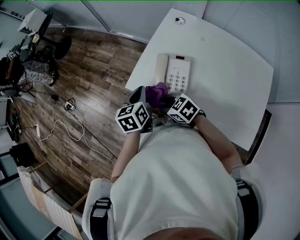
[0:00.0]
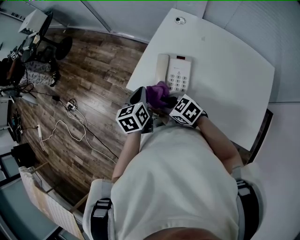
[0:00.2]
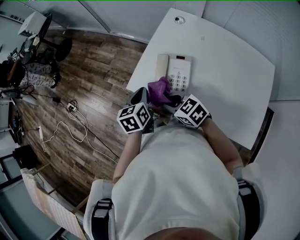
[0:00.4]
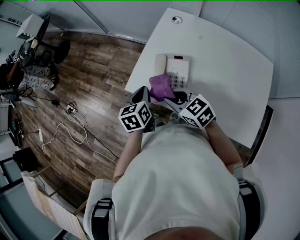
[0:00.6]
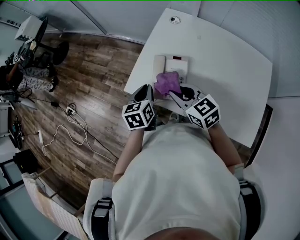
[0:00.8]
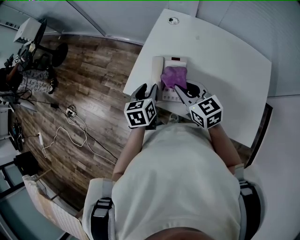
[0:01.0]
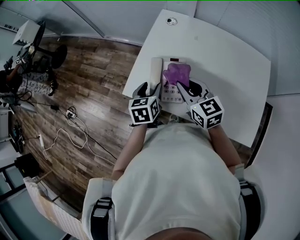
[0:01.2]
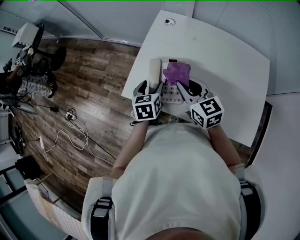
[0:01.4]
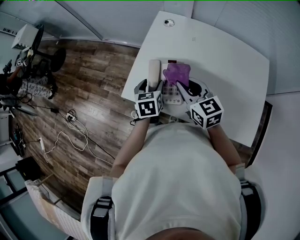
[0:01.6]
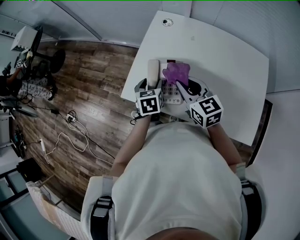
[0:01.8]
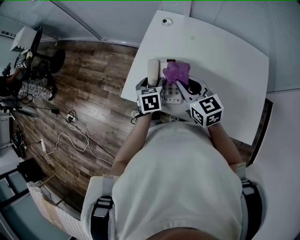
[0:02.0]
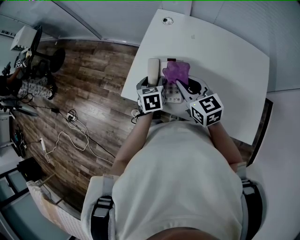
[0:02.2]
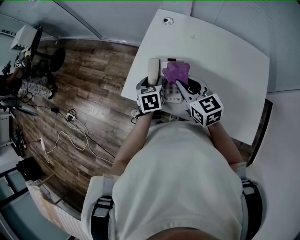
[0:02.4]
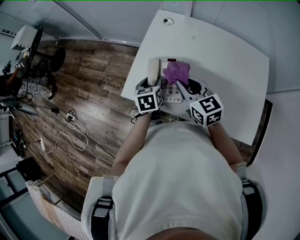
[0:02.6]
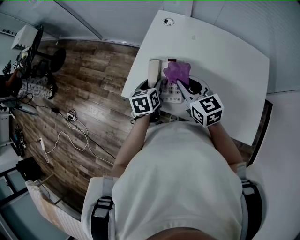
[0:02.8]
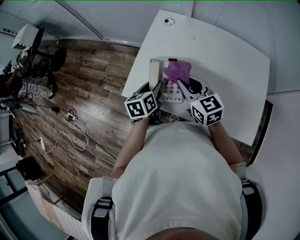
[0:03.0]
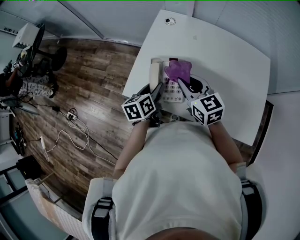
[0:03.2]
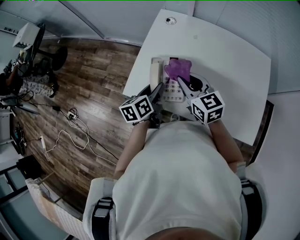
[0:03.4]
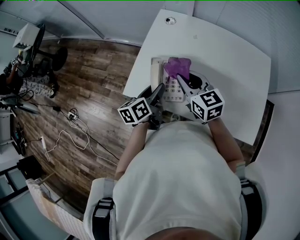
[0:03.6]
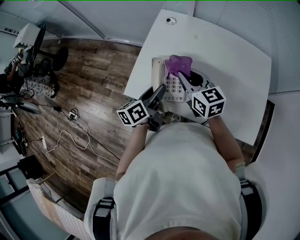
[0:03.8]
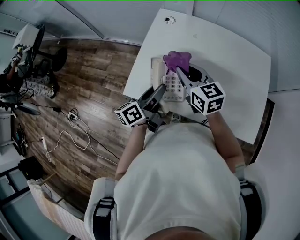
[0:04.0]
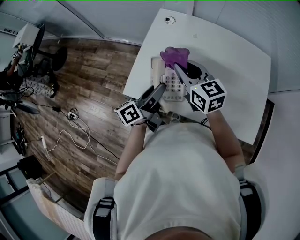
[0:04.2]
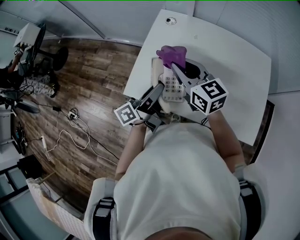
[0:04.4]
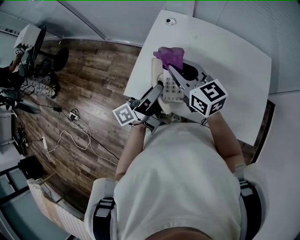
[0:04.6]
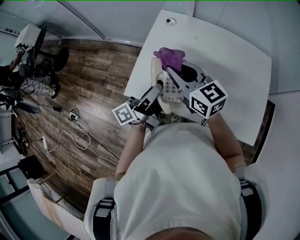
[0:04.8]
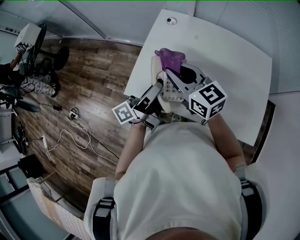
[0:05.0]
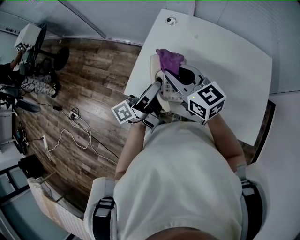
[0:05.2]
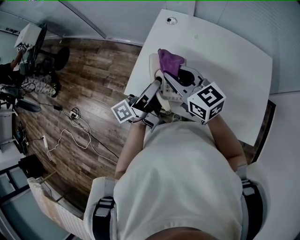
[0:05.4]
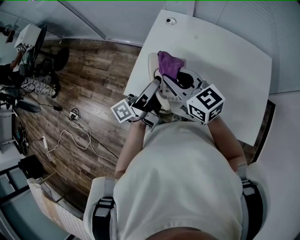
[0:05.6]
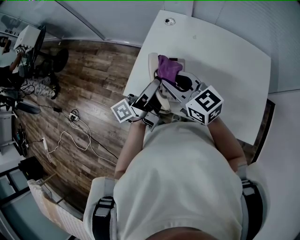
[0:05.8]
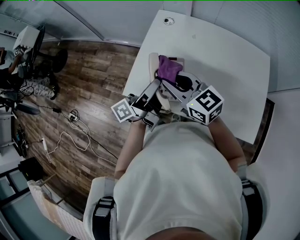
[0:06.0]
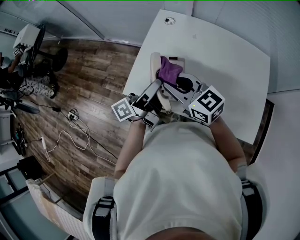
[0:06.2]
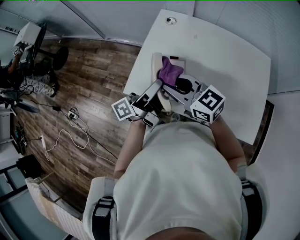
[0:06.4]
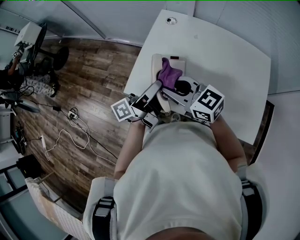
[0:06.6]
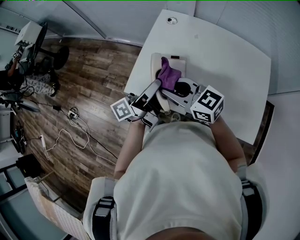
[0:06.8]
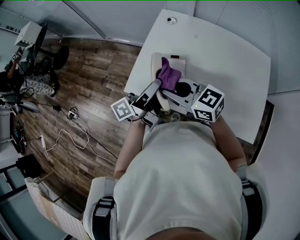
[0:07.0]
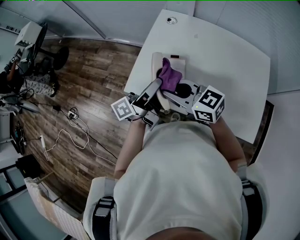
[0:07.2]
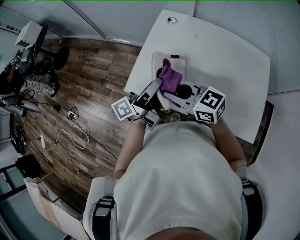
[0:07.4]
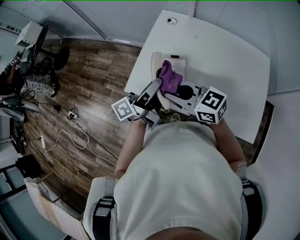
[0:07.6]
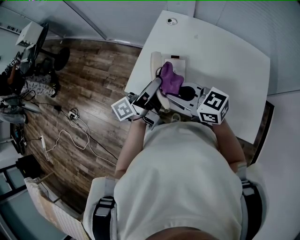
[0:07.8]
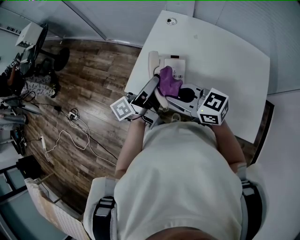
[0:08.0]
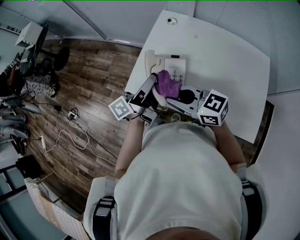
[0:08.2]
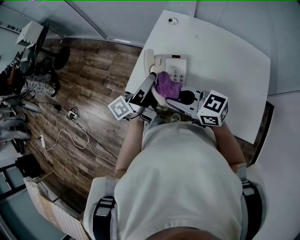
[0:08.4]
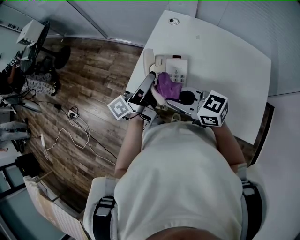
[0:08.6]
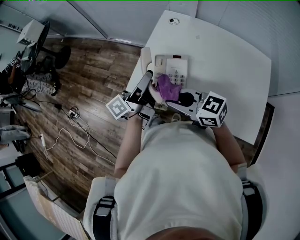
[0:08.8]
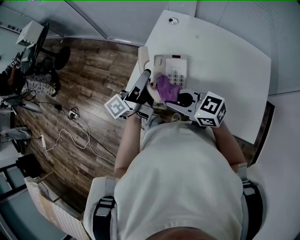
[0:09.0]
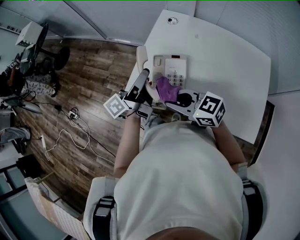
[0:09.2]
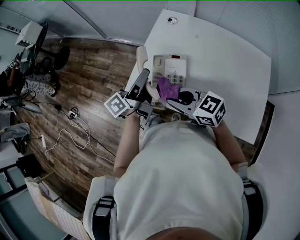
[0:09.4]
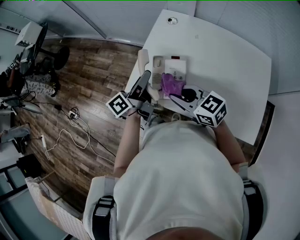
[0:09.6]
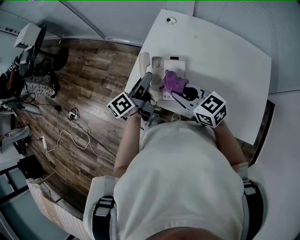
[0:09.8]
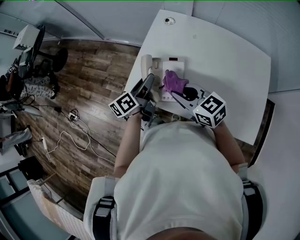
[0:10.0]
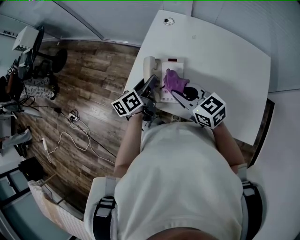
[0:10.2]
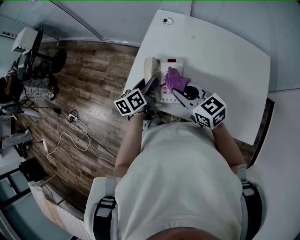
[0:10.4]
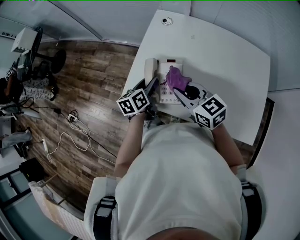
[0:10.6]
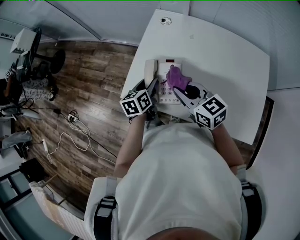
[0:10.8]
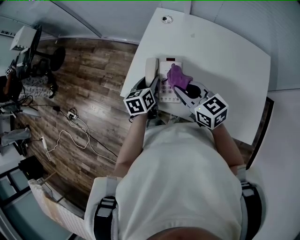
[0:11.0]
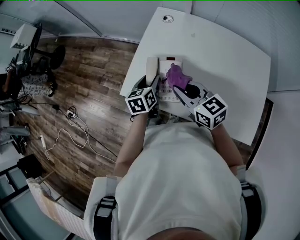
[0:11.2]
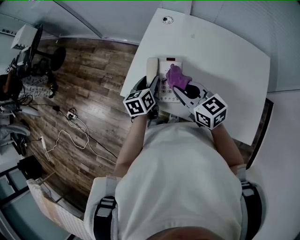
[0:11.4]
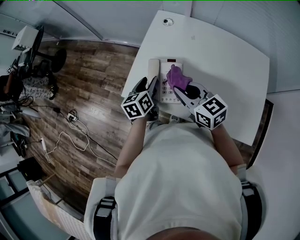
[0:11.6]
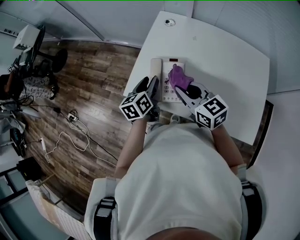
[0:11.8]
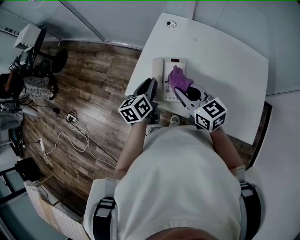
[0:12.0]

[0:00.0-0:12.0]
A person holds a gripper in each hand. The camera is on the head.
0:00.0 to 0:01.6: The right gripper changes place by approximately 20 cm, and swivels some 50 degrees. The left gripper shifts by roughly 10 cm, and opens its fingers.
0:01.6 to 0:03.0: The grippers make only small movements.
0:03.0 to 0:04.4: The left gripper moves upward, about 10 cm, and angles its fingers upward, by approximately 40 degrees; the right gripper moves upward, roughly 5 cm.
0:04.4 to 0:06.0: The right gripper travels backward by some 5 cm.
0:06.0 to 0:07.6: The right gripper shifts by approximately 5 cm.
0:07.6 to 0:09.0: The left gripper shifts by some 5 cm.
0:09.0 to 0:10.4: The left gripper heads downward, covering approximately 10 cm, and tilts its fingers roughly 40 degrees downward. Meanwhile the right gripper is displaced to the right by roughly 5 cm, and rotates roughly 20 degrees.
0:10.4 to 0:12.0: The left gripper closes its fingers.

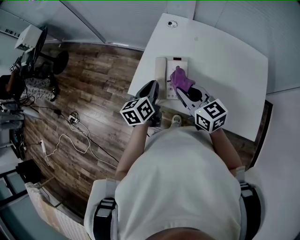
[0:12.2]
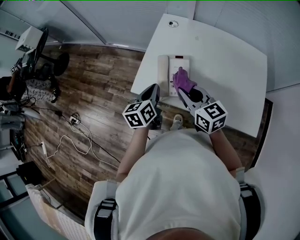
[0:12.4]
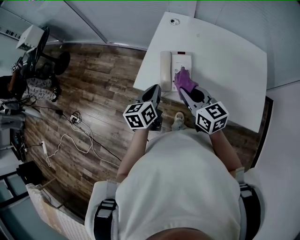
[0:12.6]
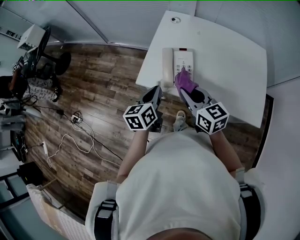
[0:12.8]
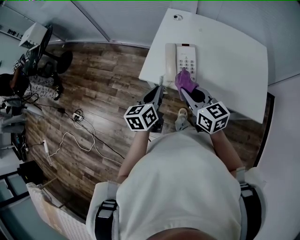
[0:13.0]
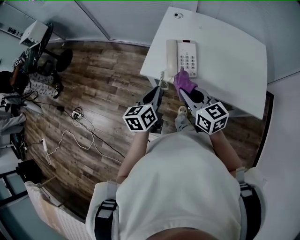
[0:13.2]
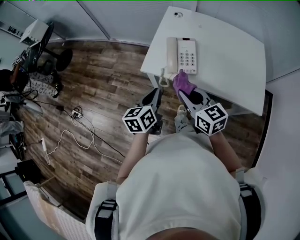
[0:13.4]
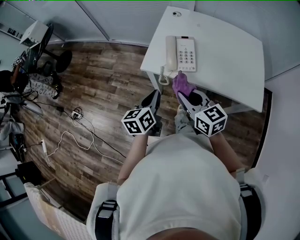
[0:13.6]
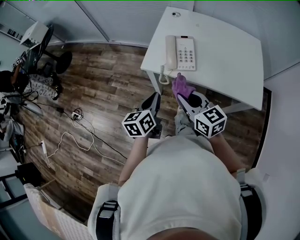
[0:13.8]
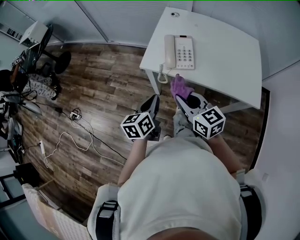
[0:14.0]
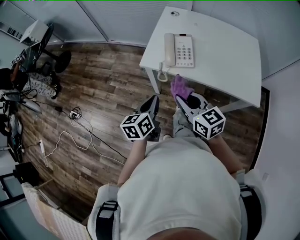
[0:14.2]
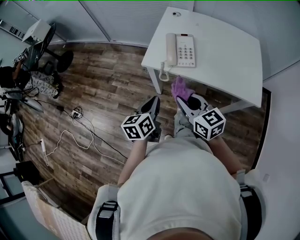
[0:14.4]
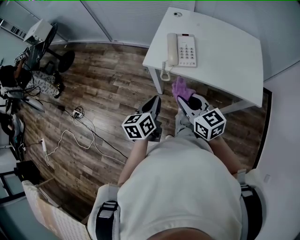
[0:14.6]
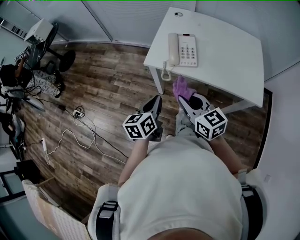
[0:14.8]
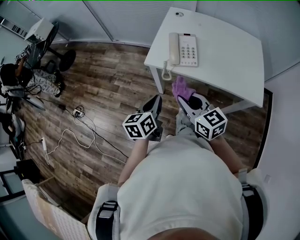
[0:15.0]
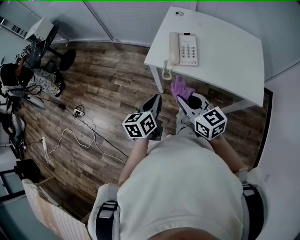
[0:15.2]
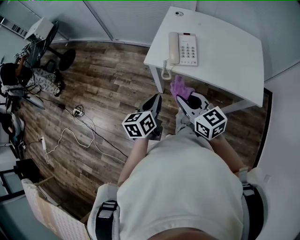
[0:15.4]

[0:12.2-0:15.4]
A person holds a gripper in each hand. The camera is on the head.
0:12.2 to 0:13.8: The two grippers go approximately 20 cm backward and to the left.
0:13.8 to 0:15.4: The right gripper moves about 5 cm.

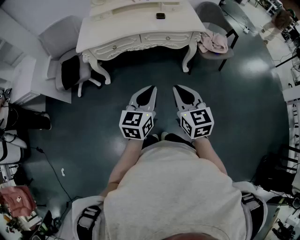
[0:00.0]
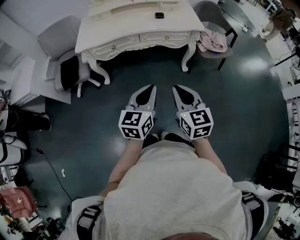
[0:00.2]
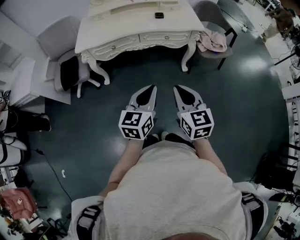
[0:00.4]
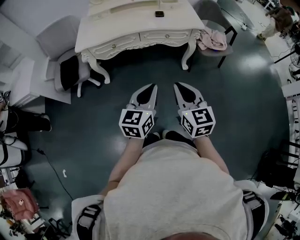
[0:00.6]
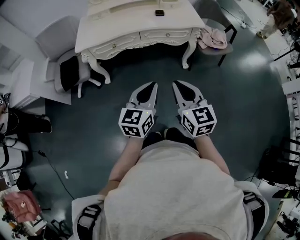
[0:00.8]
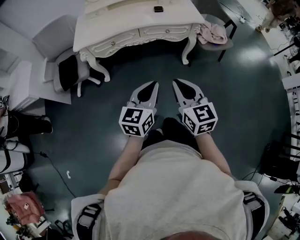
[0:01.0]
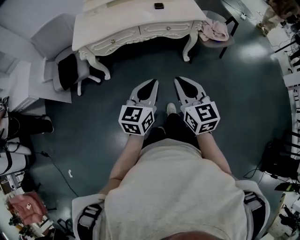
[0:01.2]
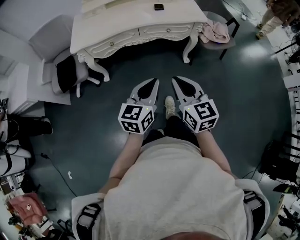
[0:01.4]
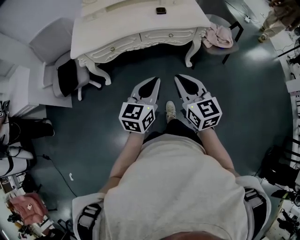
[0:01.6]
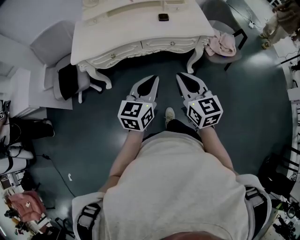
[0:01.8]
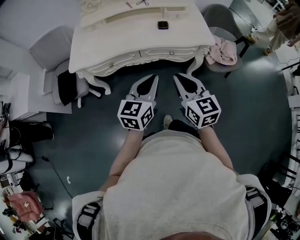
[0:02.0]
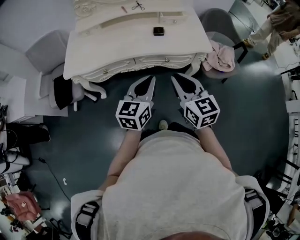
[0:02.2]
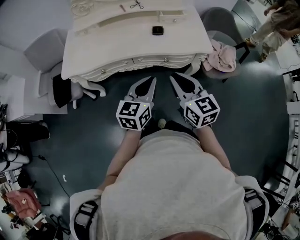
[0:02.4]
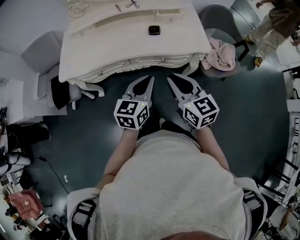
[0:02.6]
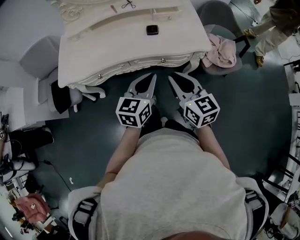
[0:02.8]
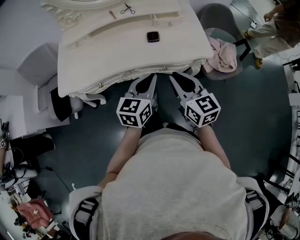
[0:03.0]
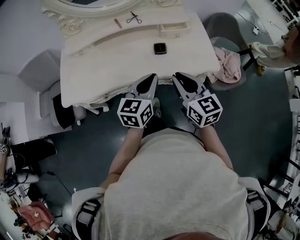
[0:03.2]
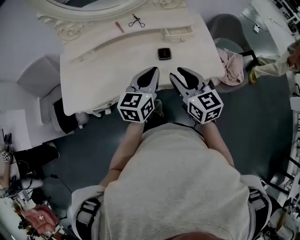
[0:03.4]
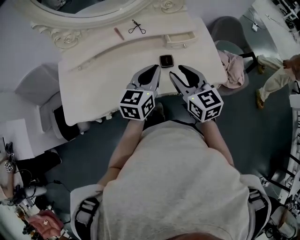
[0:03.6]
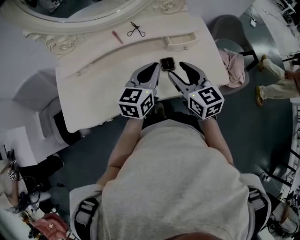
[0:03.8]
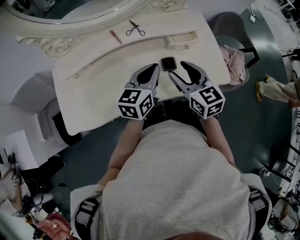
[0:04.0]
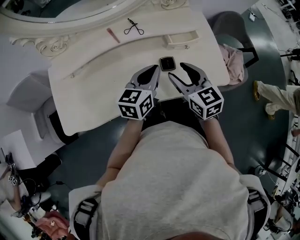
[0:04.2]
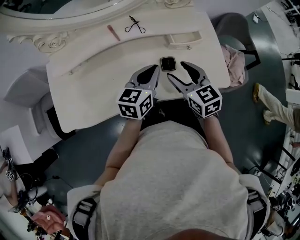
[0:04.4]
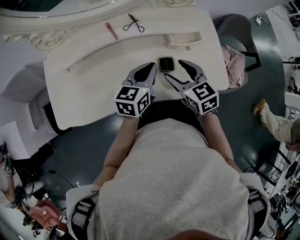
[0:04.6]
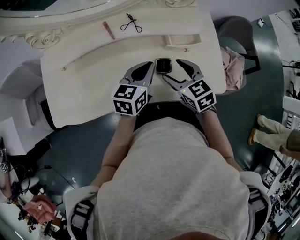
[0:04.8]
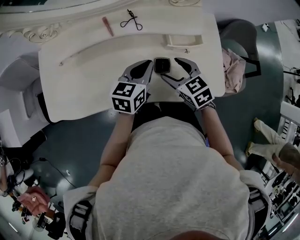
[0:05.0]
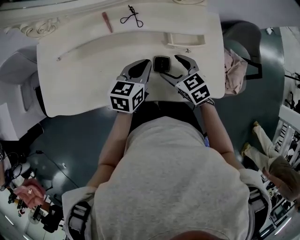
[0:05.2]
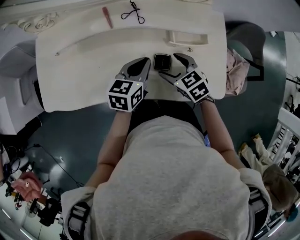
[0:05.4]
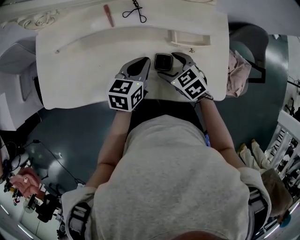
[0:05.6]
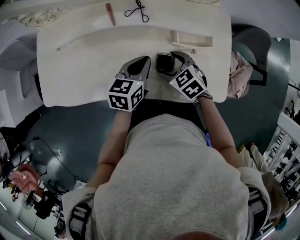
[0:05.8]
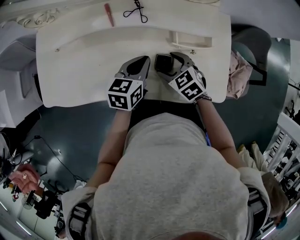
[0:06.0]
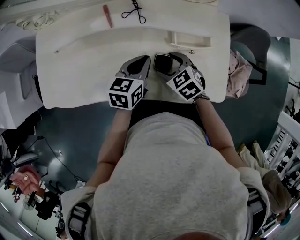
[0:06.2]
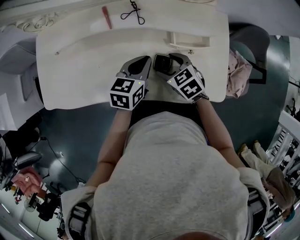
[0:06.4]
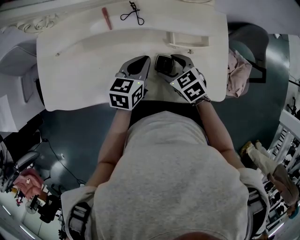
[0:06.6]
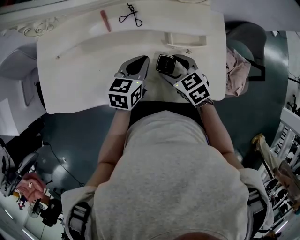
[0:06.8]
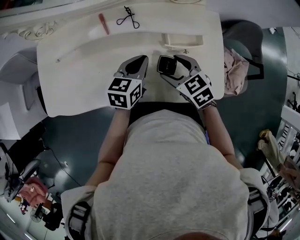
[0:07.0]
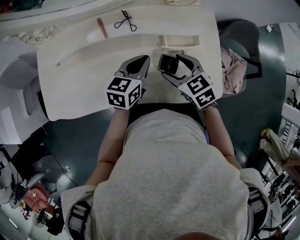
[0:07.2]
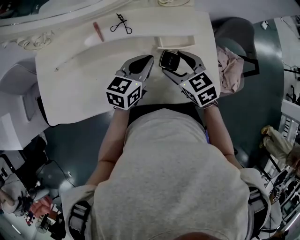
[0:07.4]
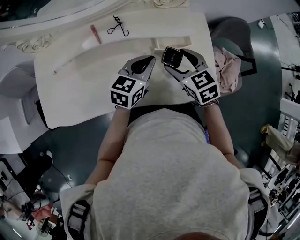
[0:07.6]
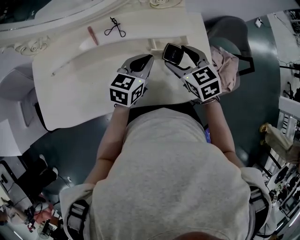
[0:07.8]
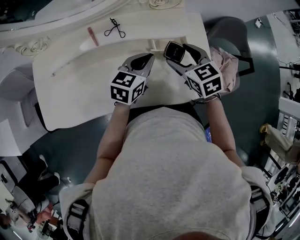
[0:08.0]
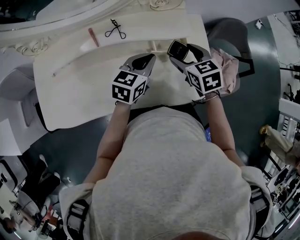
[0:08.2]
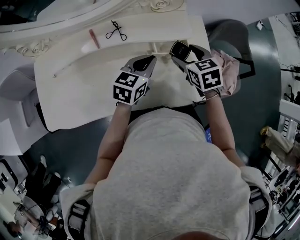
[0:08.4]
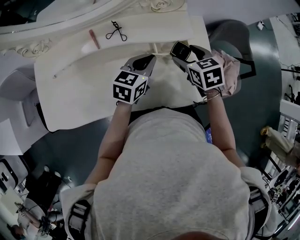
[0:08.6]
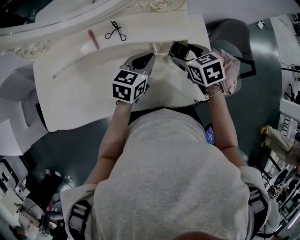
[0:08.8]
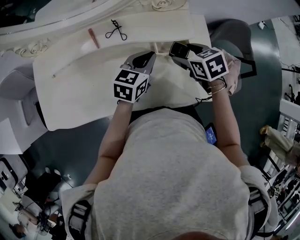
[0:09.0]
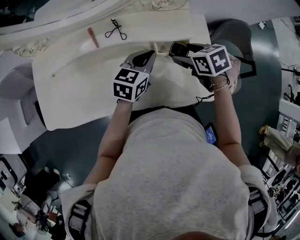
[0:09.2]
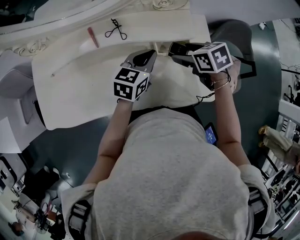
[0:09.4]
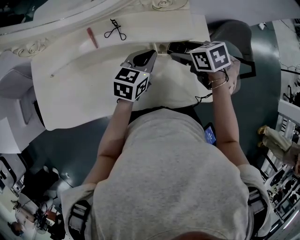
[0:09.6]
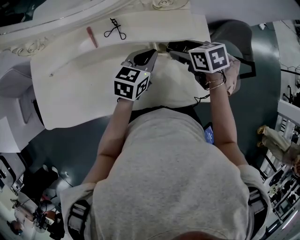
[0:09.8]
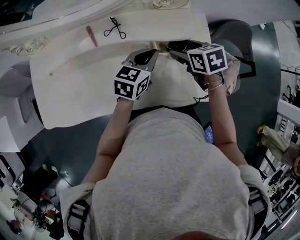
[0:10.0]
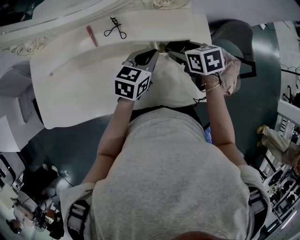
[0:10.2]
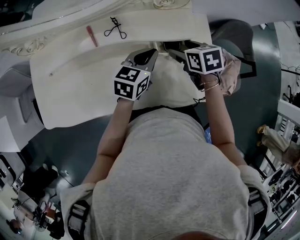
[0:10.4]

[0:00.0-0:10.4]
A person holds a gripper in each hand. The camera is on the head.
0:00.0 to 0:01.4: The right gripper moves some 5 cm. The left gripper moves about 5 cm.
0:01.4 to 0:03.0: Both grippers move forward, roughly 35 cm.
0:03.0 to 0:04.4: The two grippers go some 25 cm forward. The right gripper opens.
0:04.4 to 0:06.0: The left gripper shifts some 5 cm downward. The right gripper heads downward, covering some 15 cm, and changes its angle by some 40 degrees.
0:06.0 to 0:07.4: The right gripper goes roughly 10 cm upward and to the right. Meanwhile the left gripper shifts some 10 cm to the right and upward.
0:07.4 to 0:09.0: The right gripper goes approximately 10 cm forward and to the right.
0:09.0 to 0:10.4: The grippers move only a little.
